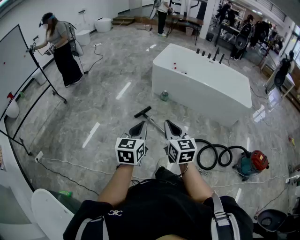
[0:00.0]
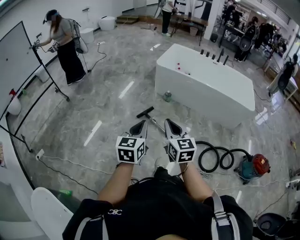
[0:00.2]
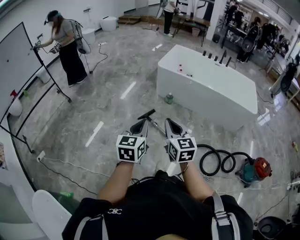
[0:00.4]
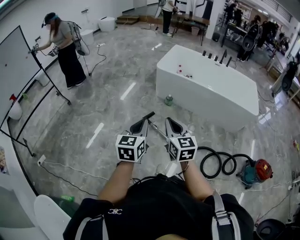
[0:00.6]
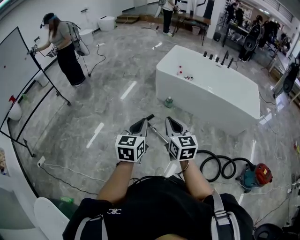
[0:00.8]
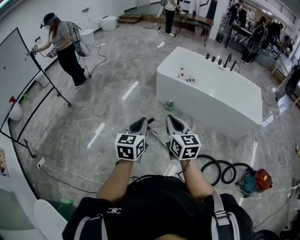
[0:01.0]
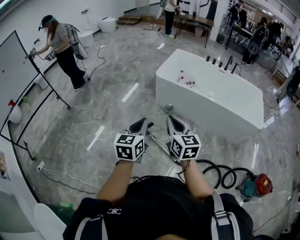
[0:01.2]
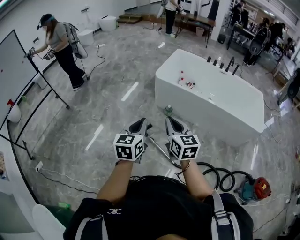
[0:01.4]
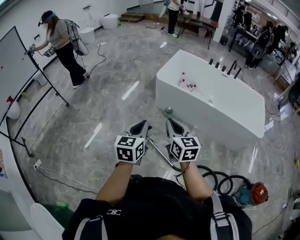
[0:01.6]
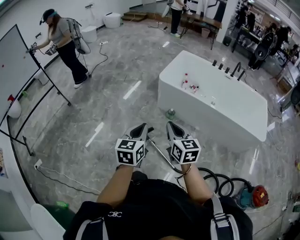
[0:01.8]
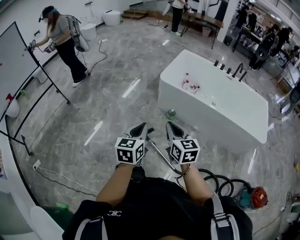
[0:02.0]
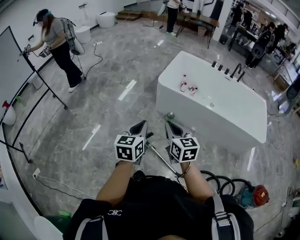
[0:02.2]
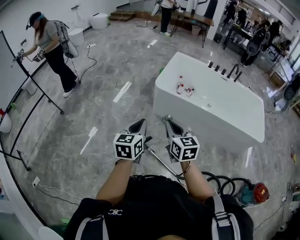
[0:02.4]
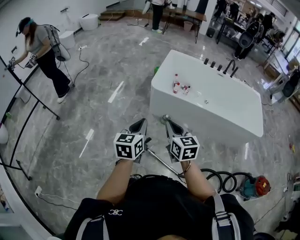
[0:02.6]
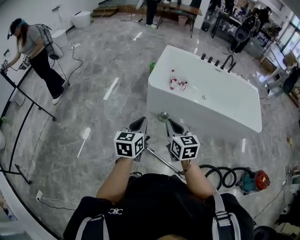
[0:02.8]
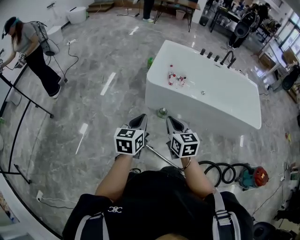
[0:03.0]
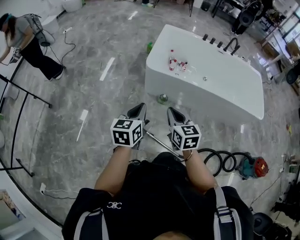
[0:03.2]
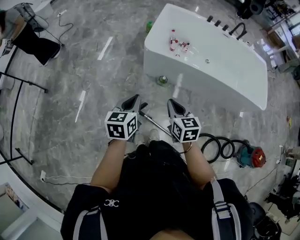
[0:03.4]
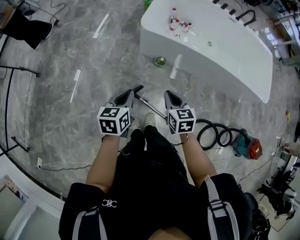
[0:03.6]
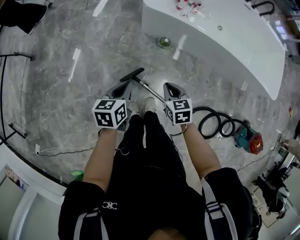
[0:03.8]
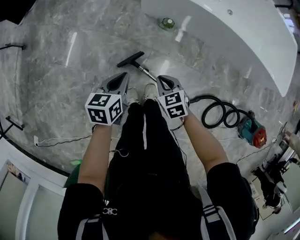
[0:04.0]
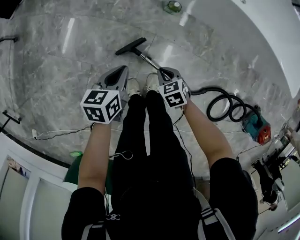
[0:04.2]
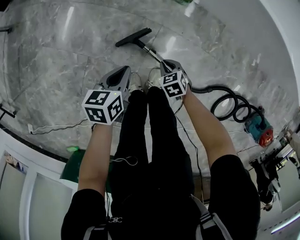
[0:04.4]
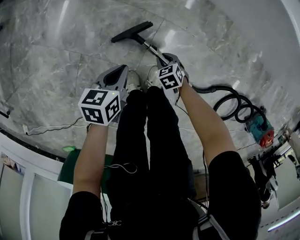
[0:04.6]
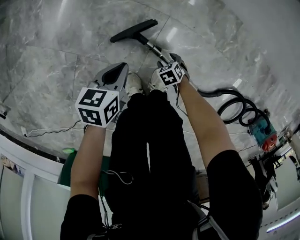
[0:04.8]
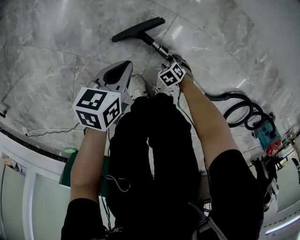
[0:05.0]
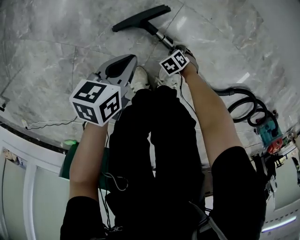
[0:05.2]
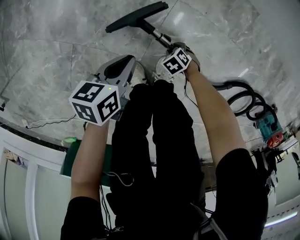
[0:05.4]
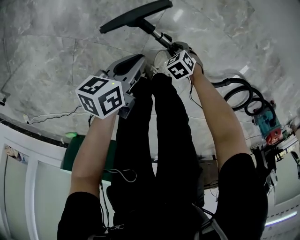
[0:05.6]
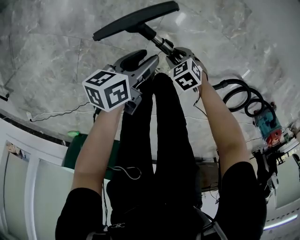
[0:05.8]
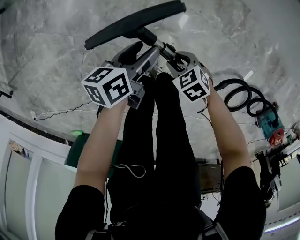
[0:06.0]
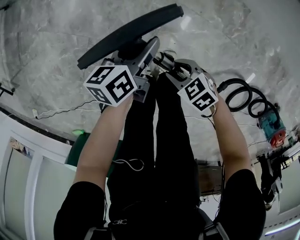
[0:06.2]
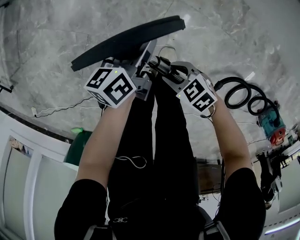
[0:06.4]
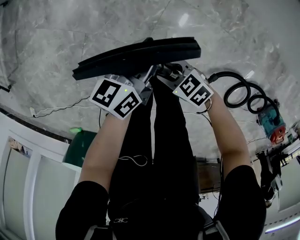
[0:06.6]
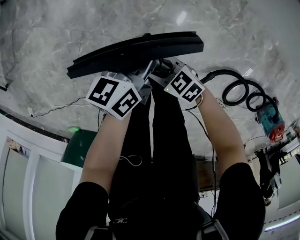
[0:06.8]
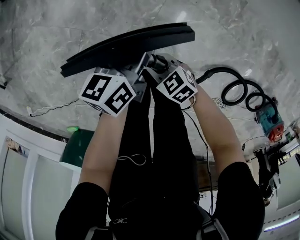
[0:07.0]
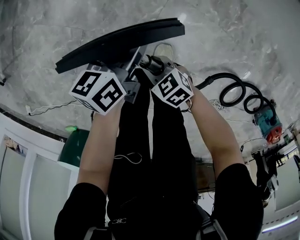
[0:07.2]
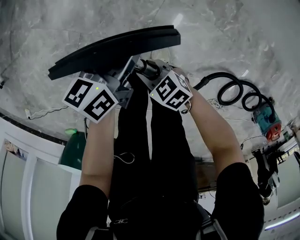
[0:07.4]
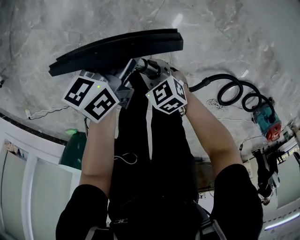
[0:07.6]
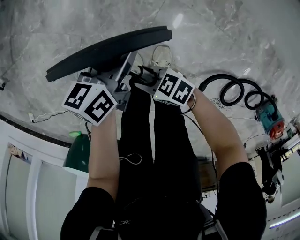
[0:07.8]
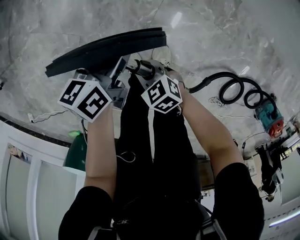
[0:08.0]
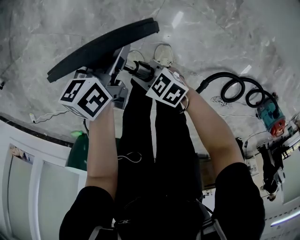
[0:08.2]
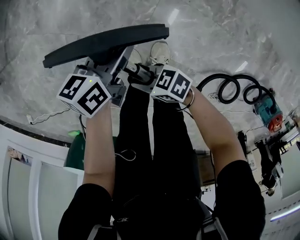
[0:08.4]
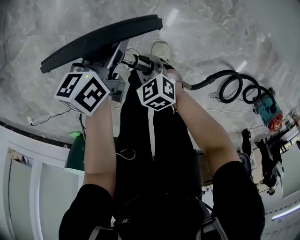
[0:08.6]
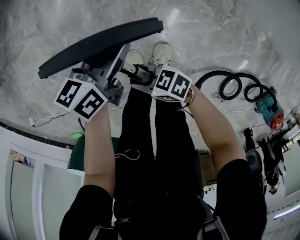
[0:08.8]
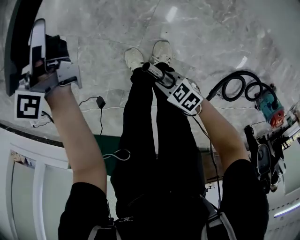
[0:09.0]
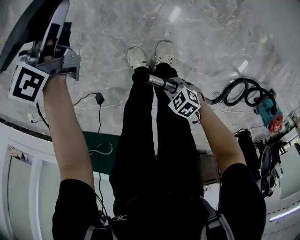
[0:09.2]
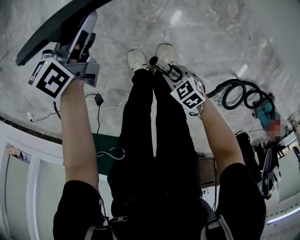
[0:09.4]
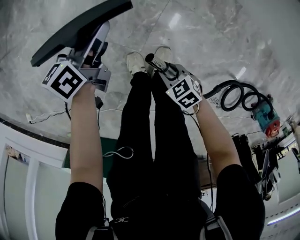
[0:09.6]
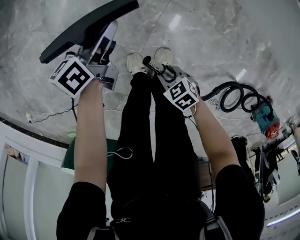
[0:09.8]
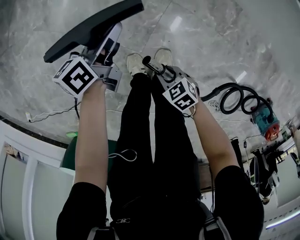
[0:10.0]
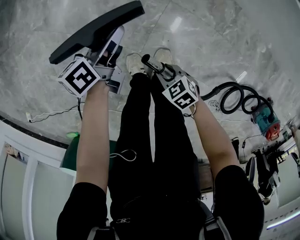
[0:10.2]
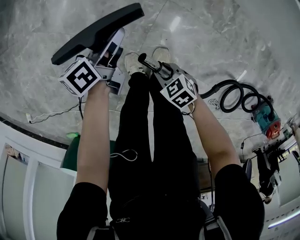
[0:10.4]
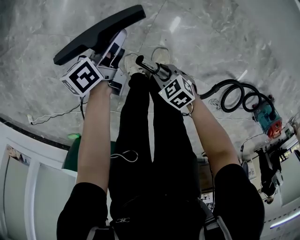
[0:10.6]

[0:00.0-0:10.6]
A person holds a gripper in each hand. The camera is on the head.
0:00.0 to 0:01.6: The grippers both shift forward by approximately 40 cm.
0:01.6 to 0:03.0: Both grippers travel together forward, some 25 cm.
0:03.0 to 0:04.6: The grippers both shift downward by about 70 cm. The right gripper tilts its fingers roughly 50 degrees downward. The left gripper swivels about 40 degrees.
0:04.6 to 0:06.0: The right gripper reaches some 20 cm downward, then returns, and opens up. The left gripper reaches some 10 cm downward, then returns, rotates roughly 20 degrees, and opens.
0:06.0 to 0:07.6: The right gripper changes place by approximately 10 cm, and closes up; the left gripper goes about 10 cm upward, and closes.
0:07.6 to 0:09.0: The left gripper moves approximately 20 cm, and rotates some 20 degrees; the right gripper ends up about 10 cm from where it was, and changes its angle by some 20 degrees.
0:09.0 to 0:10.6: The right gripper changes place by approximately 5 cm; the left gripper moves approximately 20 cm, and turns by about 30 degrees.

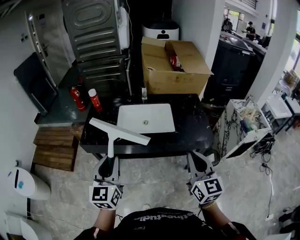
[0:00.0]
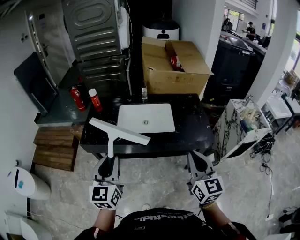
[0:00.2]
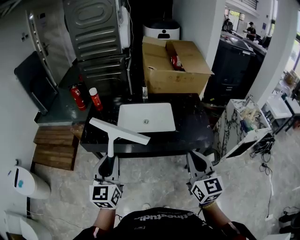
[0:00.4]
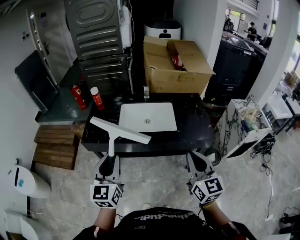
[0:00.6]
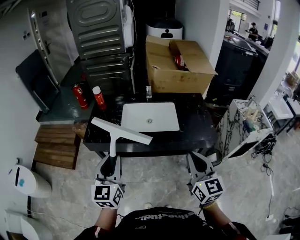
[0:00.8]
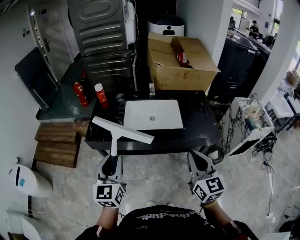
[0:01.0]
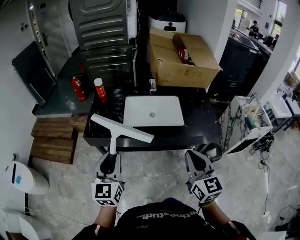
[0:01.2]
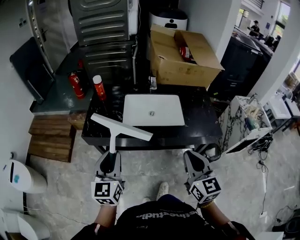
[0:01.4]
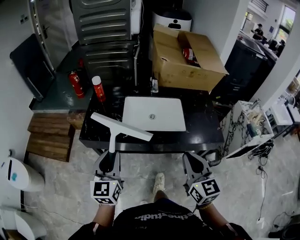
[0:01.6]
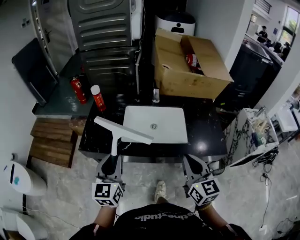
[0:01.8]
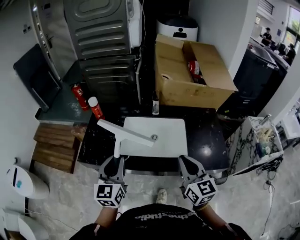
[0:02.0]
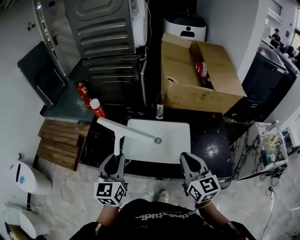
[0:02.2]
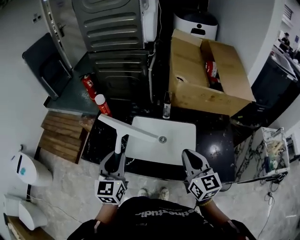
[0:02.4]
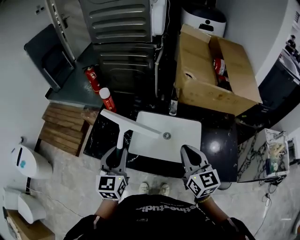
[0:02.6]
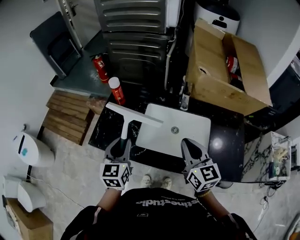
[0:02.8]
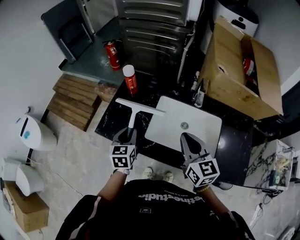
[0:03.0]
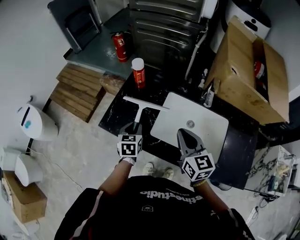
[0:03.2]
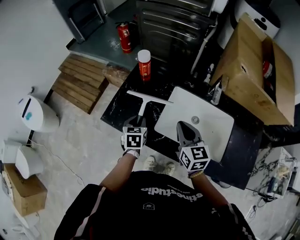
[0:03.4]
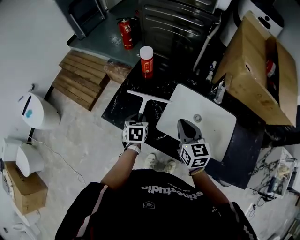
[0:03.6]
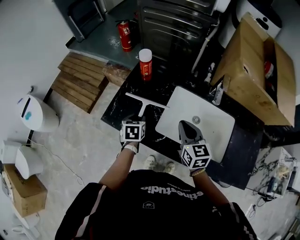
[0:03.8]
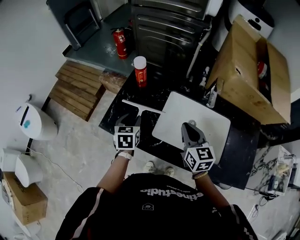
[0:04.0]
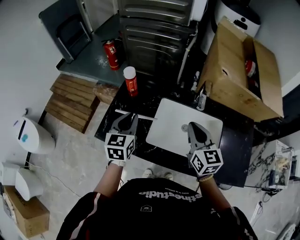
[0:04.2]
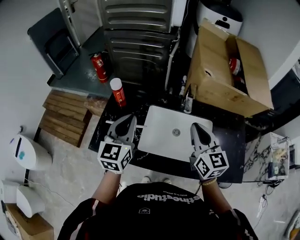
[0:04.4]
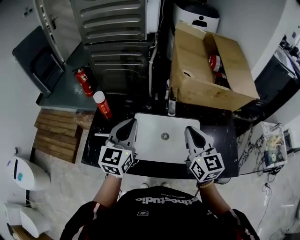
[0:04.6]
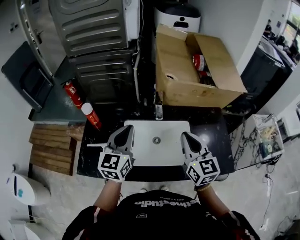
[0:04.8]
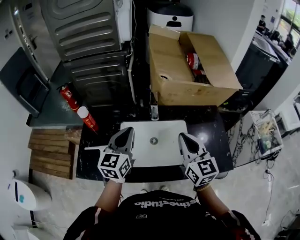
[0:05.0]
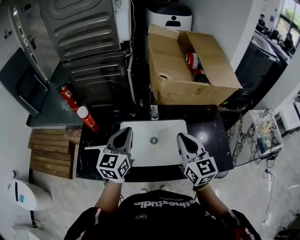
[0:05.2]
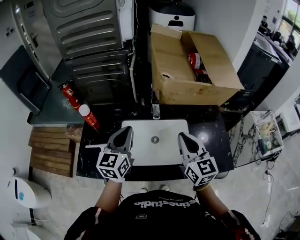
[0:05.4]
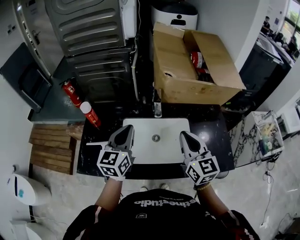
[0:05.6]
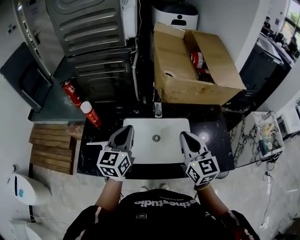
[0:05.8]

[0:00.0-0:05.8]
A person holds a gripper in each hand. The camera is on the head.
0:00.0 to 0:01.4: The left gripper moves to the left and downward, roughly 10 cm. Meanwhile the right gripper shifts some 10 cm to the left.
0:01.4 to 0:02.8: Both grippers move forward, roughly 30 cm.
0:02.8 to 0:04.4: The two grippers go approximately 10 cm forward. The right gripper moves approximately 15 cm downward and comes back, while the left gripper reaches roughly 20 cm downward, then returns.
0:04.4 to 0:05.8: The two grippers go approximately 10 cm to the right.

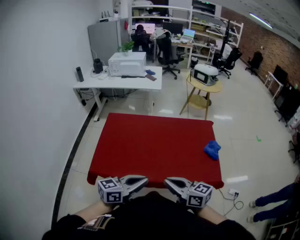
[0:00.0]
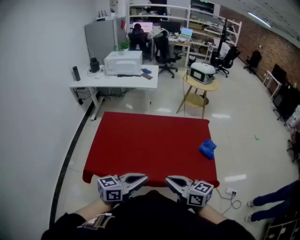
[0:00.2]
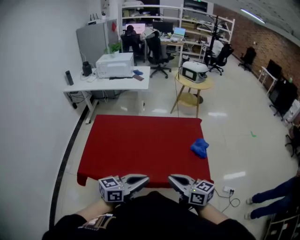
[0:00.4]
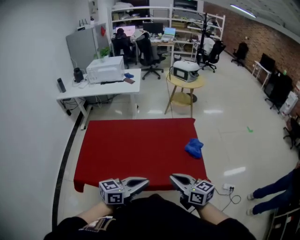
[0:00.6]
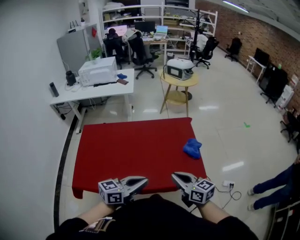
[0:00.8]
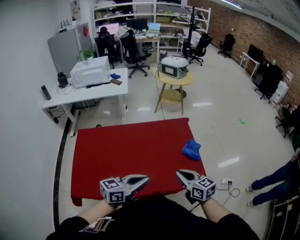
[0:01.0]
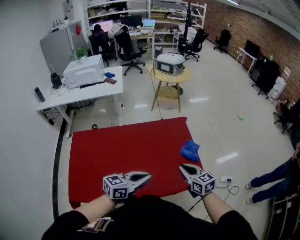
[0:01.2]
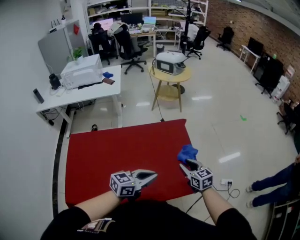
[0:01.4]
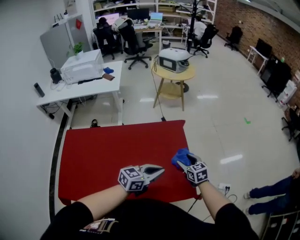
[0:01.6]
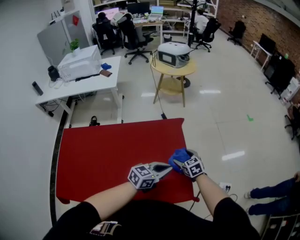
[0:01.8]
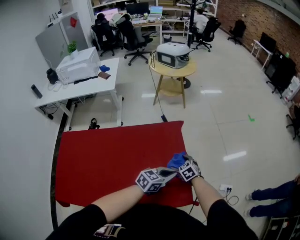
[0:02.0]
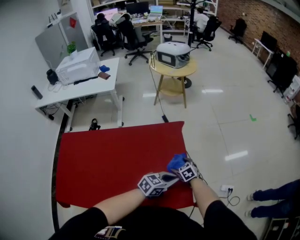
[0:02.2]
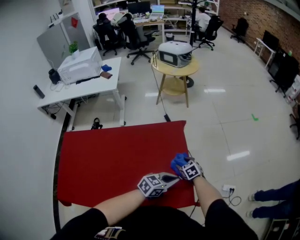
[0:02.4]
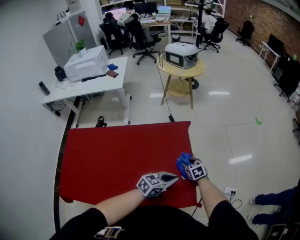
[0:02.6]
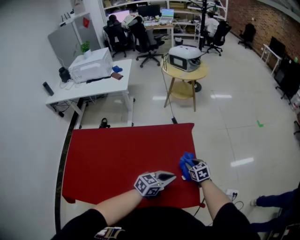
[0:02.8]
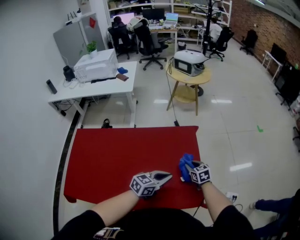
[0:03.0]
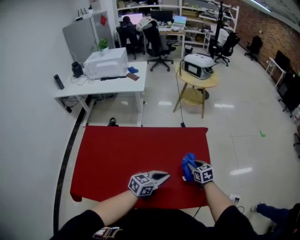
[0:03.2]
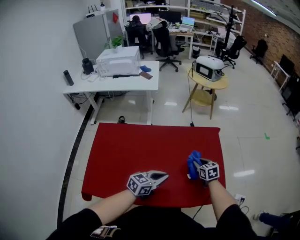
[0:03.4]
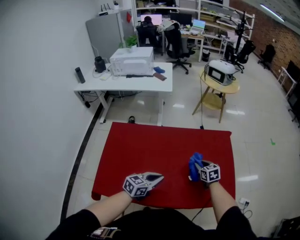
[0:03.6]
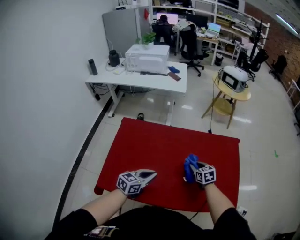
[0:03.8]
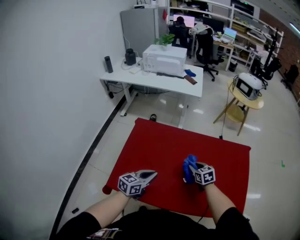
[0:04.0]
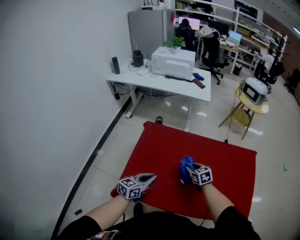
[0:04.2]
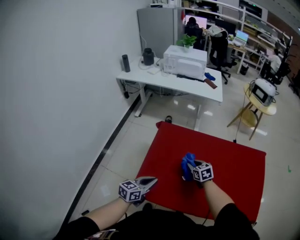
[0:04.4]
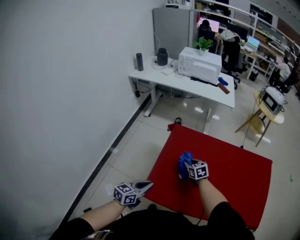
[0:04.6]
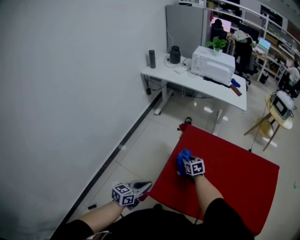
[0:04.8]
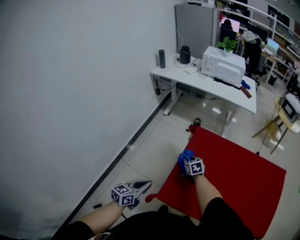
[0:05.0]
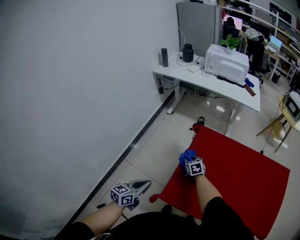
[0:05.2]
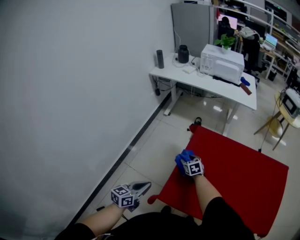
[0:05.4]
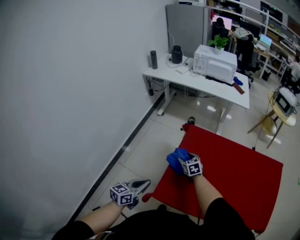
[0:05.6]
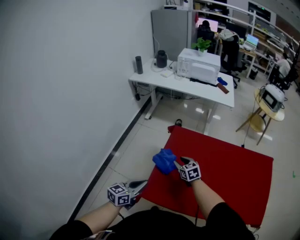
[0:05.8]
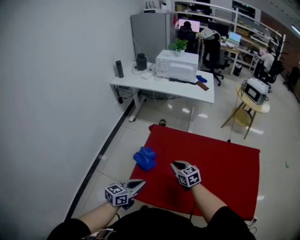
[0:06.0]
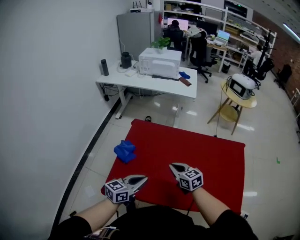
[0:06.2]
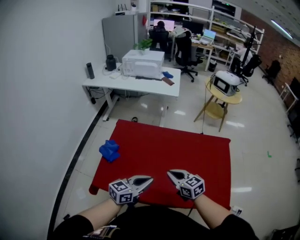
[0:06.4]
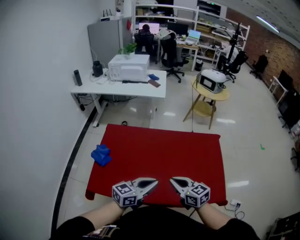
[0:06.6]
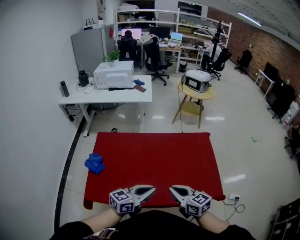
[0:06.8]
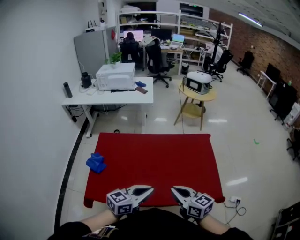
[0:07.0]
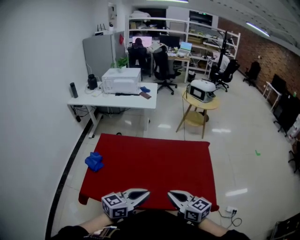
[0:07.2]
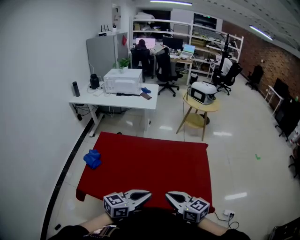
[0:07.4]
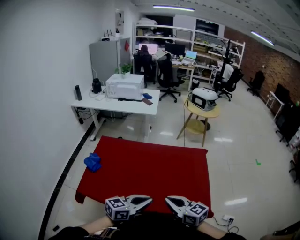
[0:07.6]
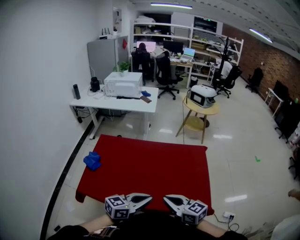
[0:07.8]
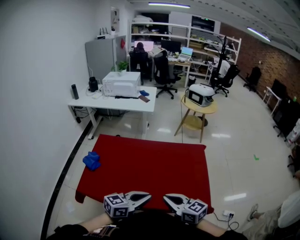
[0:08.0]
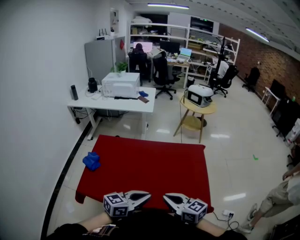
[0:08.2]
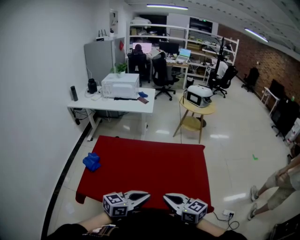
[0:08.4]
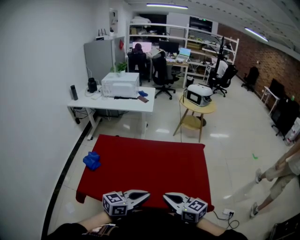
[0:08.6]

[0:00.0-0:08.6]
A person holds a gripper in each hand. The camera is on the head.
0:00.0 to 0:01.4: The left gripper shifts by roughly 30 cm. Meanwhile the right gripper moves roughly 40 cm, swivels about 40 degrees, and opens up.
0:01.4 to 0:02.8: The left gripper is displaced forward, to the right and downward by approximately 20 cm. Meanwhile the right gripper moves forward and downward, roughly 20 cm, and opens and closes again.
0:02.8 to 0:04.4: The two grippers travel together, roughly 70 cm. The right gripper rotates about 20 degrees. Meanwhile the left gripper swivels approximately 40 degrees.
0:04.4 to 0:05.8: Both grippers travel together to the left, approximately 15 cm.
0:05.8 to 0:07.2: Both grippers are carried to the right, approximately 50 cm. The left gripper turns by some 30 degrees. Meanwhile the right gripper moves upward, roughly 20 cm, swivels some 30 degrees, and closes up.
0:07.2 to 0:08.6: The grippers stay close to where they were, moving slightly.
